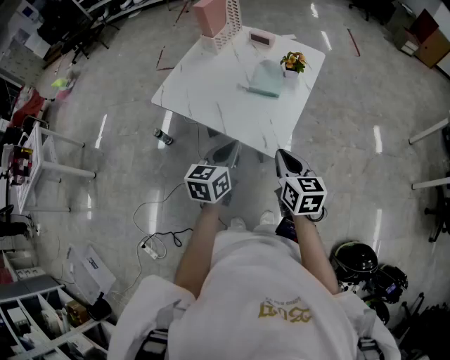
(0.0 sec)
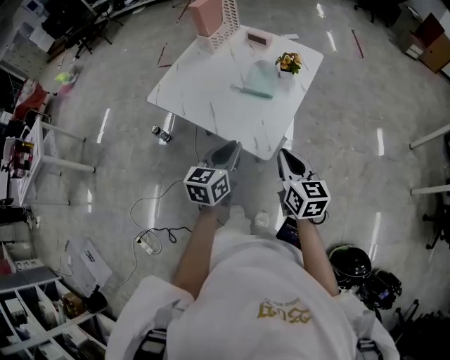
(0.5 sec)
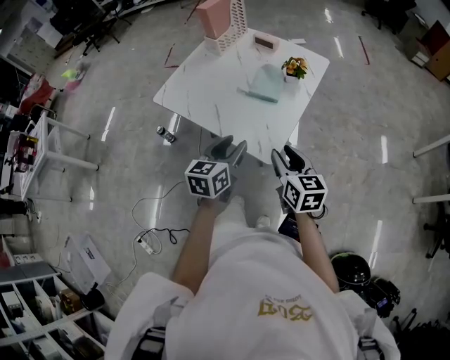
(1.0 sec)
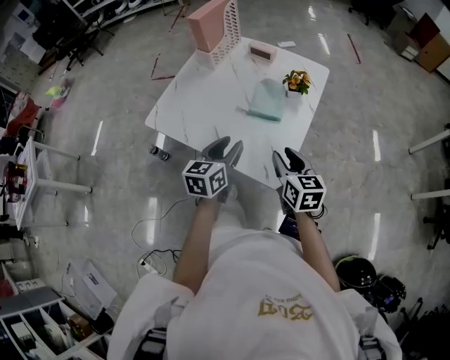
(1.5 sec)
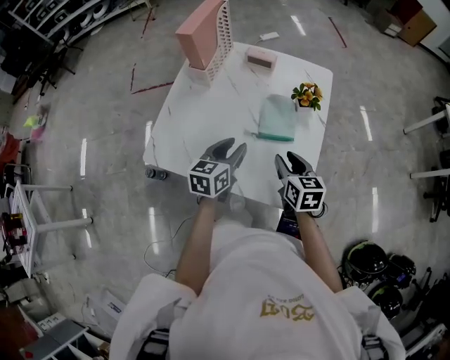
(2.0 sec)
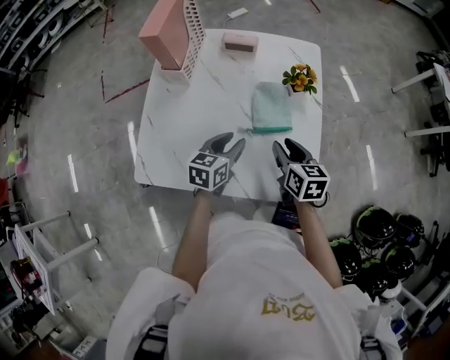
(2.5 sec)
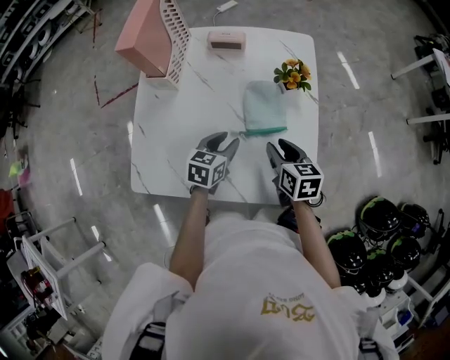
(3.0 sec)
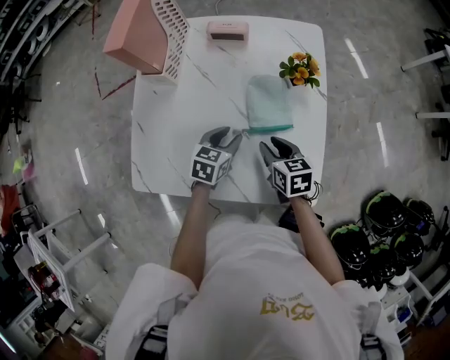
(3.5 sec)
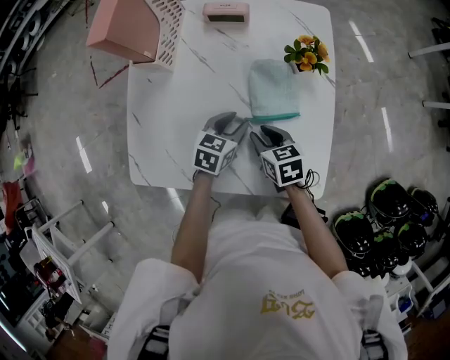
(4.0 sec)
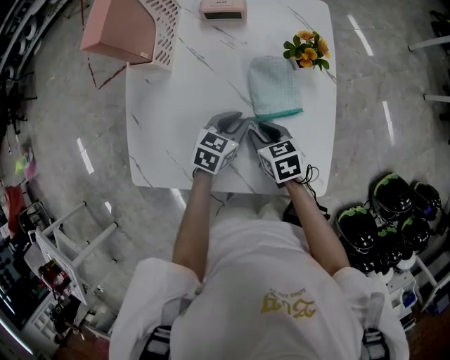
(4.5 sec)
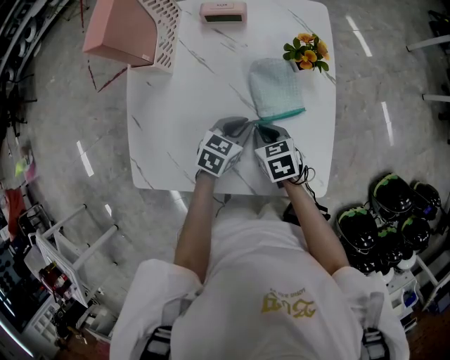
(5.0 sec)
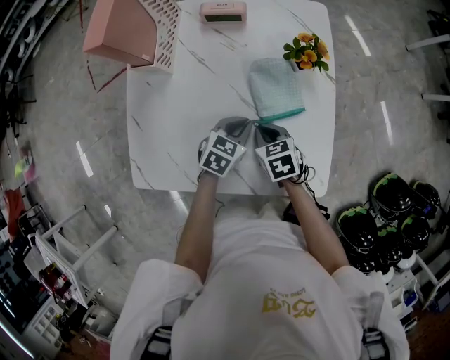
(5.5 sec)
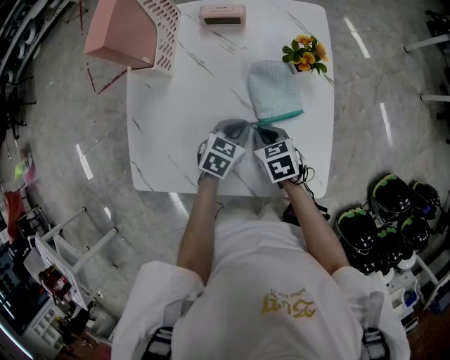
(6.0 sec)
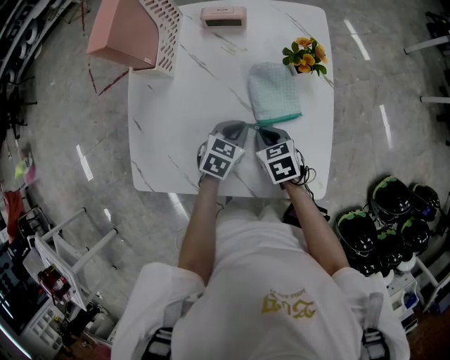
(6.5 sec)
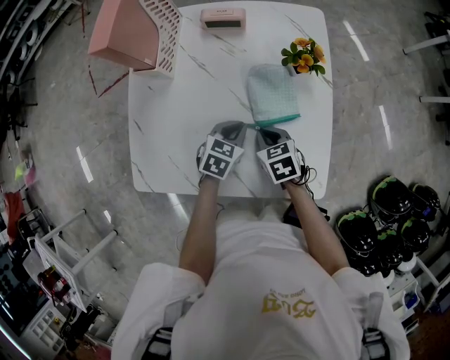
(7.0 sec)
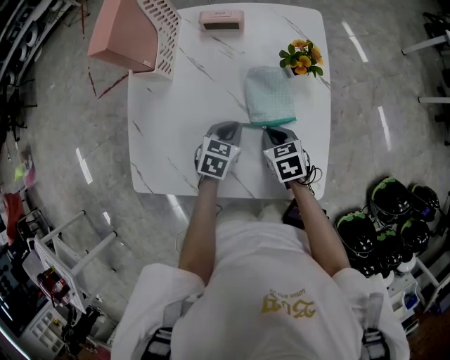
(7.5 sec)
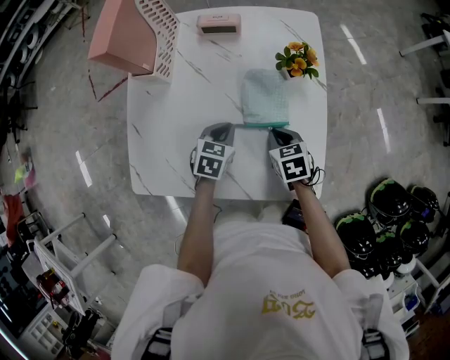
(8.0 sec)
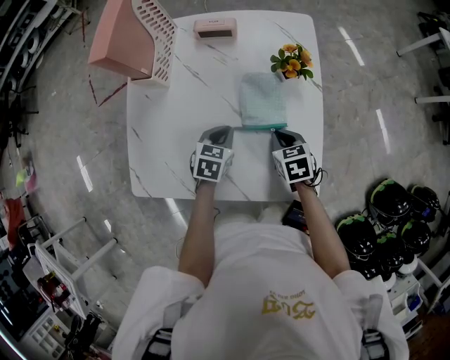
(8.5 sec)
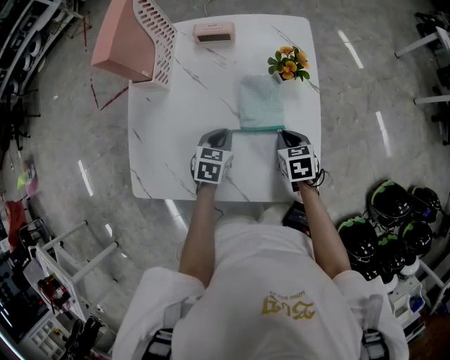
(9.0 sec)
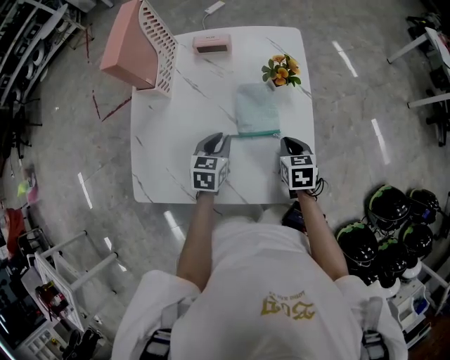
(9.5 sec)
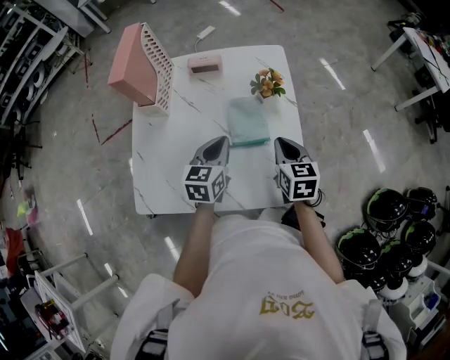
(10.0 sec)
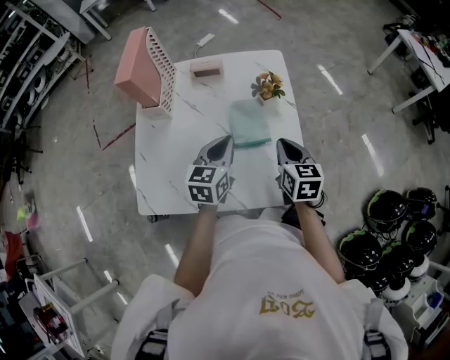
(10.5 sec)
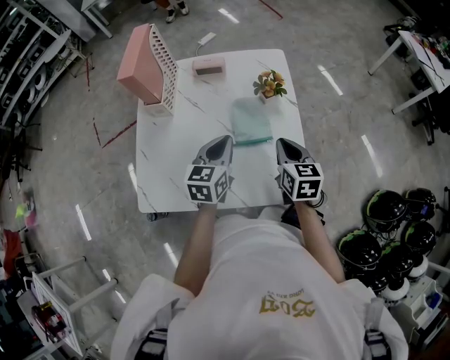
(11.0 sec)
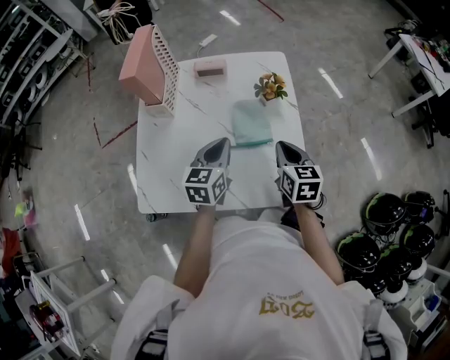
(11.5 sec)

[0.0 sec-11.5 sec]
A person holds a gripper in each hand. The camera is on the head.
0.0 sec to 2.0 sec: The two grippers go roughly 25 cm forward. The right gripper opens its fingers; the left gripper opens.
2.0 sec to 4.0 sec: The right gripper shifts some 15 cm downward, to the left and forward. The left gripper heads downward and forward, covering about 15 cm, and changes its angle by some 30 degrees.
4.0 sec to 6.0 sec: The right gripper closes its fingers, while the left gripper closes its fingers.
6.0 sec to 7.5 sec: The grippers stay close to where they were, moving slightly.
7.5 sec to 9.5 sec: The left gripper ends up about 5 cm from where it was; the right gripper shifts about 10 cm to the right.
9.5 sec to 11.5 sec: Both grippers travel together upward, some 15 cm.

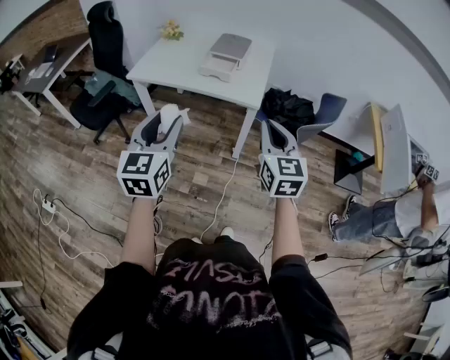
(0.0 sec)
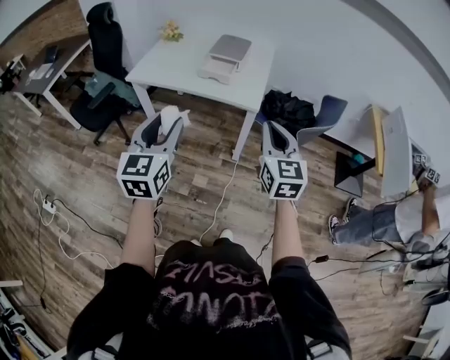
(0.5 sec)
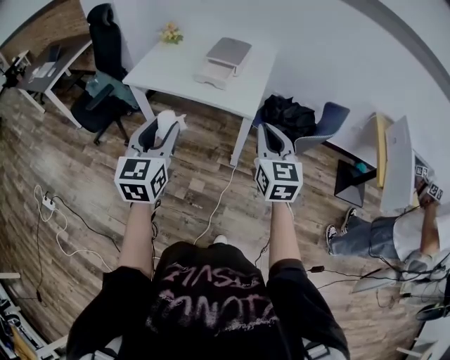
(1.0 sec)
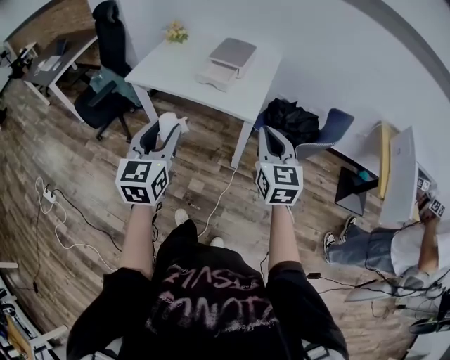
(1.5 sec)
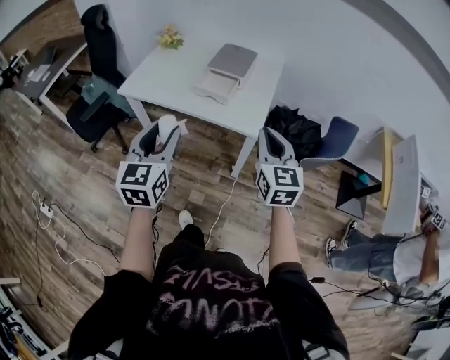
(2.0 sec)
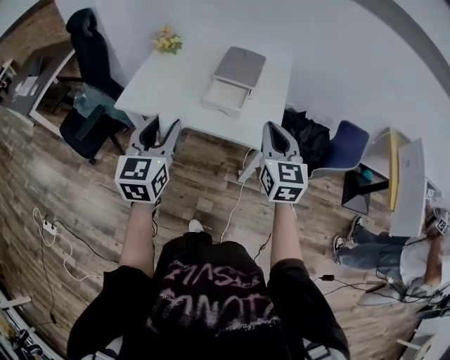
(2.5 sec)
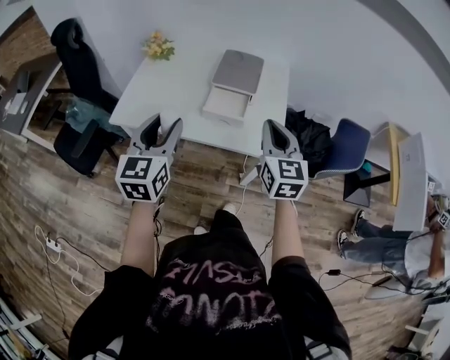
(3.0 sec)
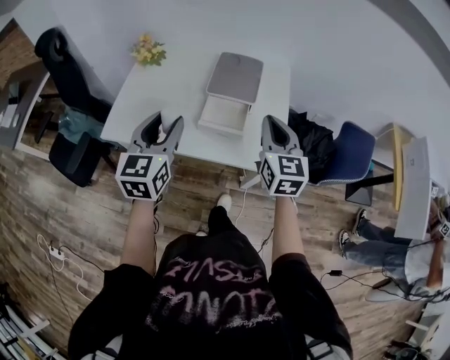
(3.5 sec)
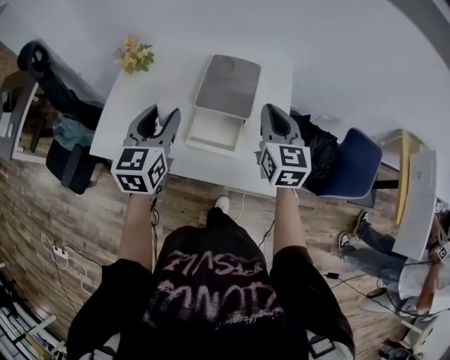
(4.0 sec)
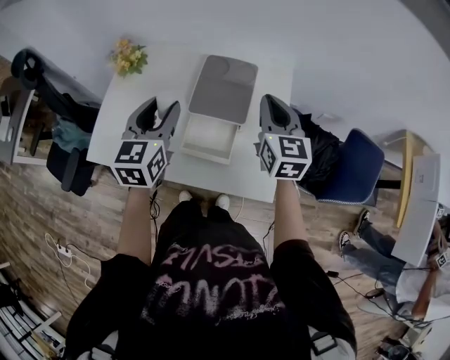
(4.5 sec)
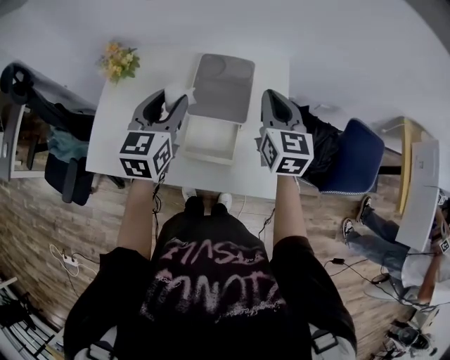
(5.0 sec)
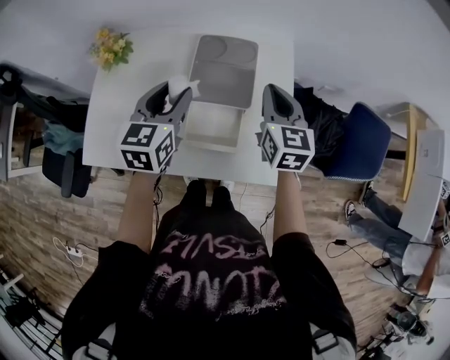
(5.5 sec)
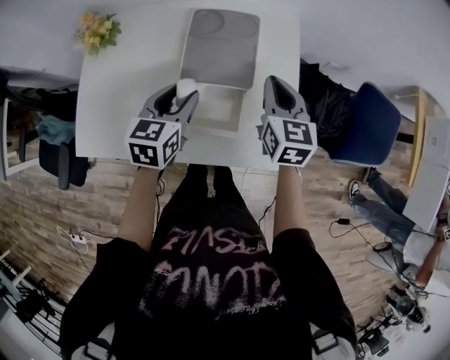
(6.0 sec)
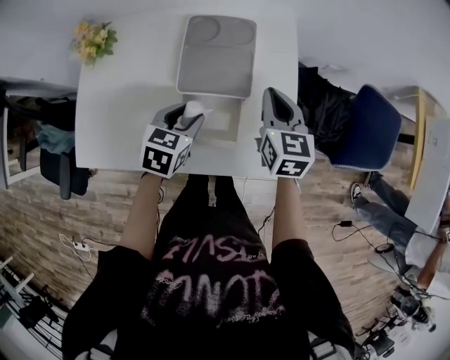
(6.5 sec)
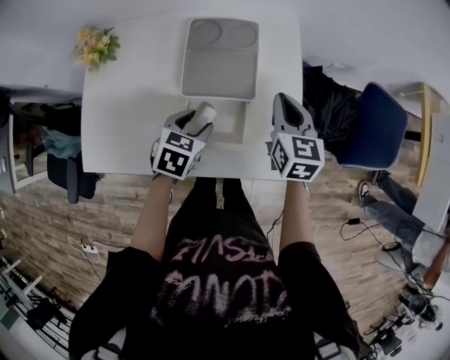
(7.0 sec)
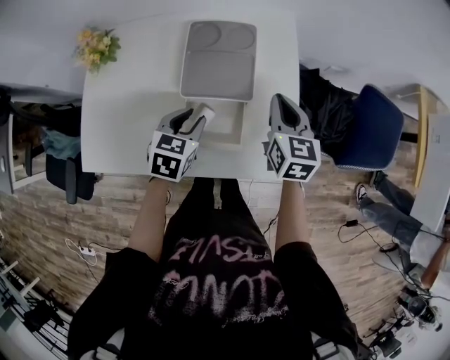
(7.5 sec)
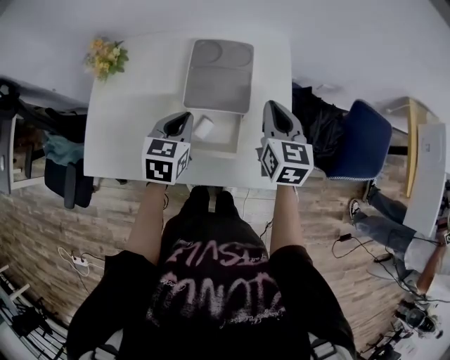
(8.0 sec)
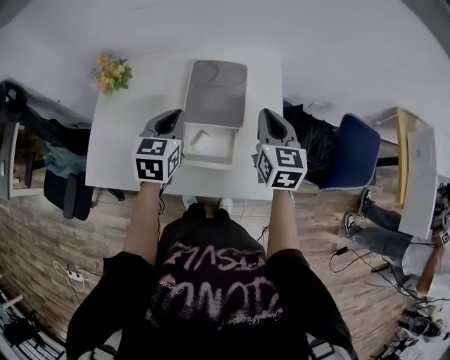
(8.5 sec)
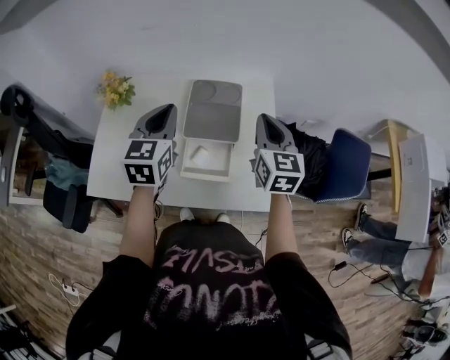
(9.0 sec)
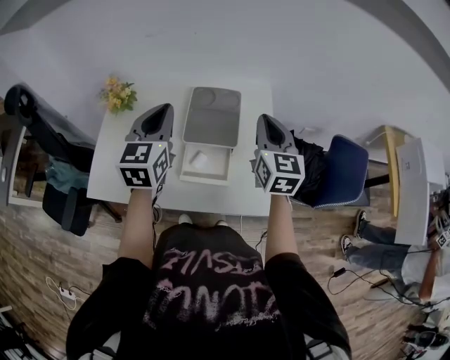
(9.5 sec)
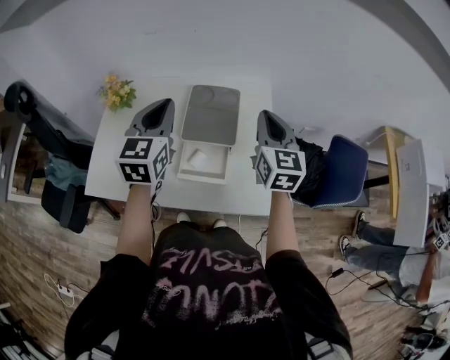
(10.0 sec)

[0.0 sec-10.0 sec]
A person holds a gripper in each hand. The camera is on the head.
0.0 sec to 2.0 sec: The two grippers go roughly 15 cm forward.
2.0 sec to 4.0 sec: The grippers both shift forward by about 40 cm.
4.0 sec to 6.0 sec: The grippers both shift downward and forward by some 15 cm. The left gripper turns by approximately 30 degrees.
6.0 sec to 8.0 sec: The left gripper moves some 10 cm downward and comes back, and closes its fingers.
8.0 sec to 10.0 sec: The left gripper goes approximately 20 cm upward, and turns by approximately 30 degrees. Meanwhile the right gripper moves upward, some 10 cm.

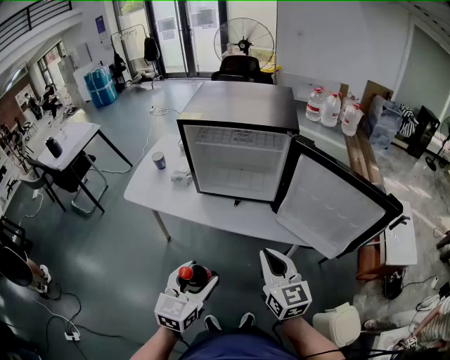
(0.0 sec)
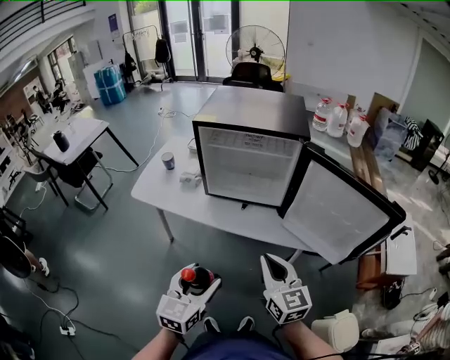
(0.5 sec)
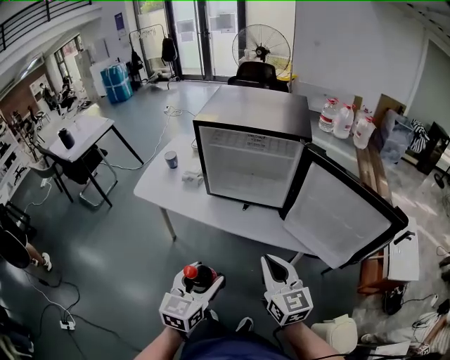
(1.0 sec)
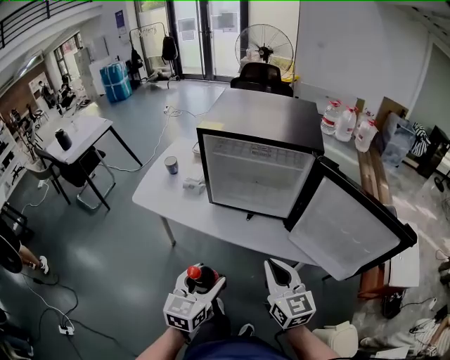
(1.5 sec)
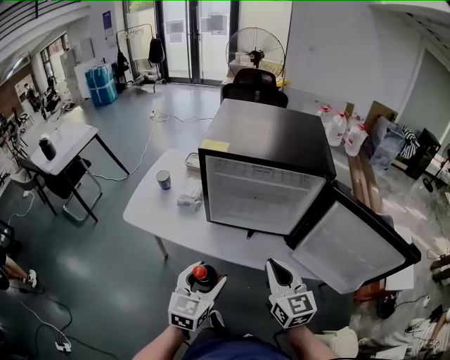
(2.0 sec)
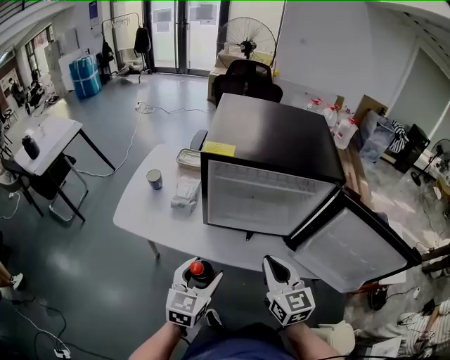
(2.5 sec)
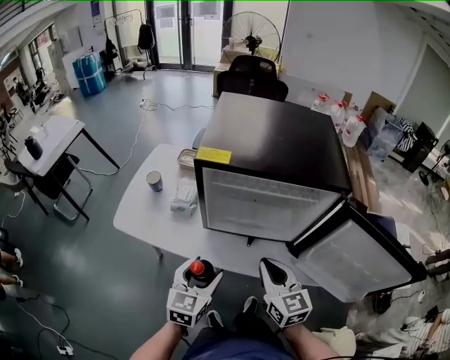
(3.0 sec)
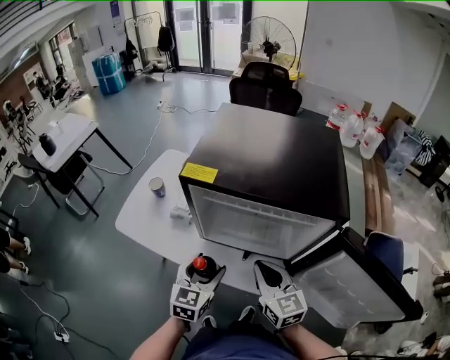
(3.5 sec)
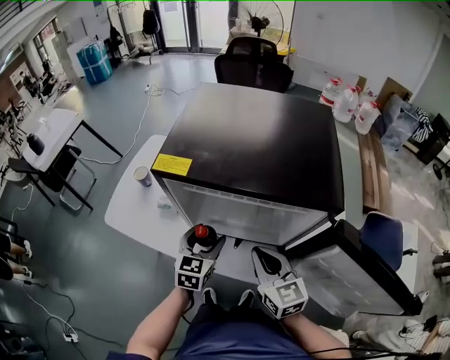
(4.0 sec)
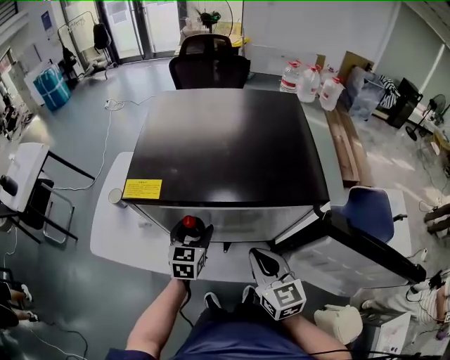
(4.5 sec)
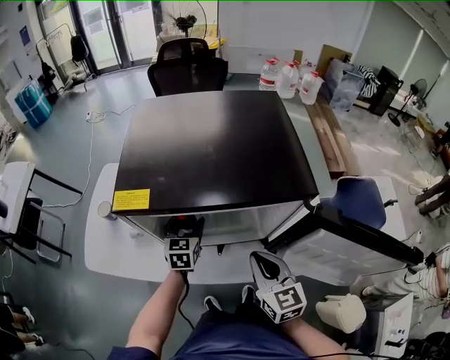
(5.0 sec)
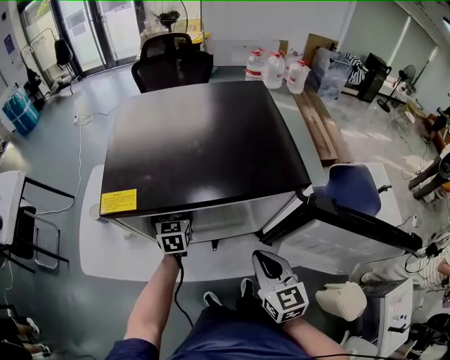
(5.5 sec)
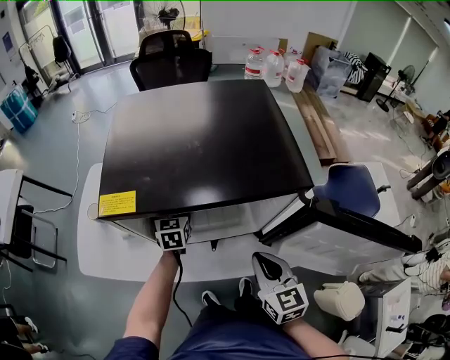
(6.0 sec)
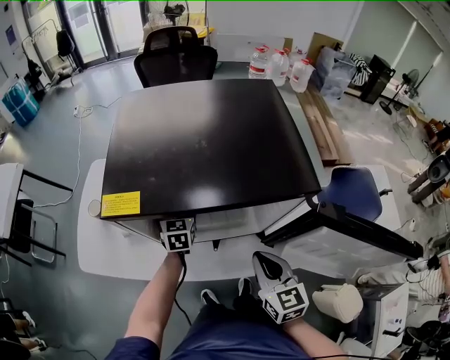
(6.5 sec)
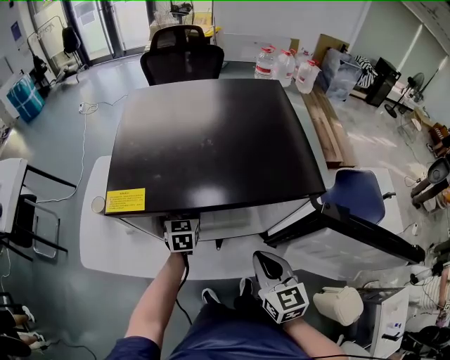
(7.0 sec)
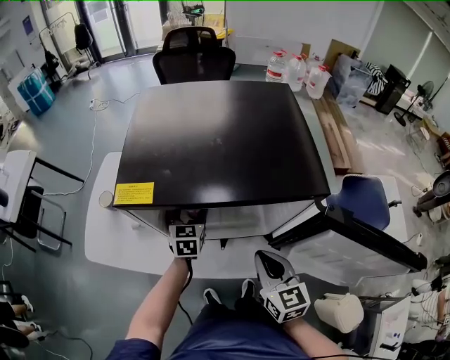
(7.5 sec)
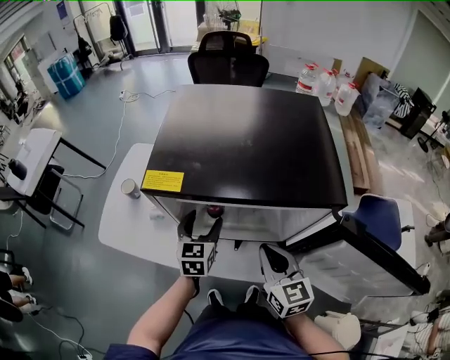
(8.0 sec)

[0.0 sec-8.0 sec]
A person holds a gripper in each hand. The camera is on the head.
0.0 sec to 2.0 sec: The left gripper is displaced forward by roughly 15 cm; the right gripper is displaced forward and to the left by roughly 15 cm.
2.0 sec to 4.0 sec: The left gripper is displaced forward by about 25 cm, while the right gripper goes approximately 15 cm forward.
4.0 sec to 6.0 sec: The right gripper moves to the right, roughly 5 cm, and rotates some 30 degrees, while the left gripper heads forward, covering about 15 cm.
6.0 sec to 8.0 sec: The left gripper shifts about 10 cm backward and upward. Meanwhile the right gripper moves roughly 5 cm.
